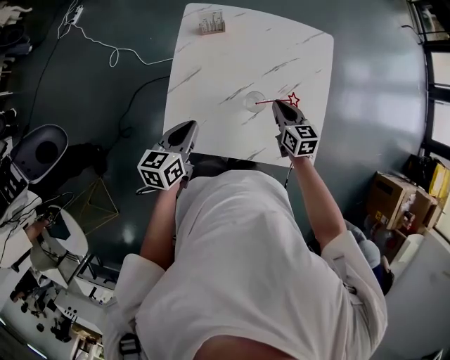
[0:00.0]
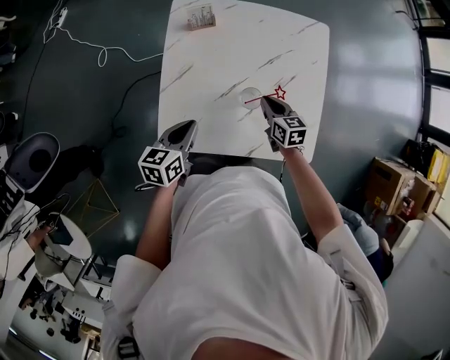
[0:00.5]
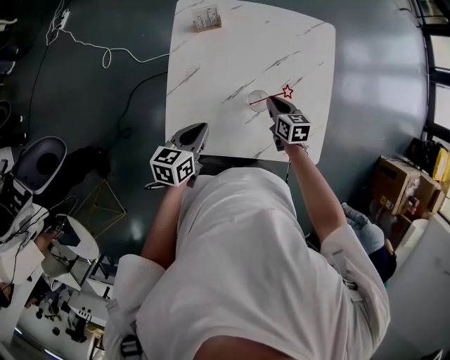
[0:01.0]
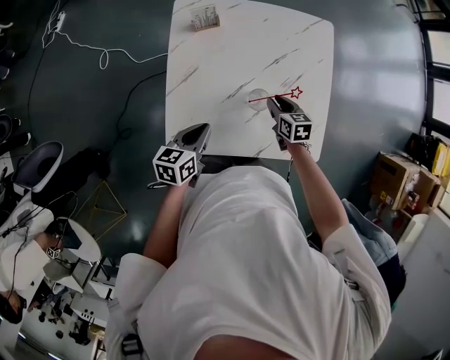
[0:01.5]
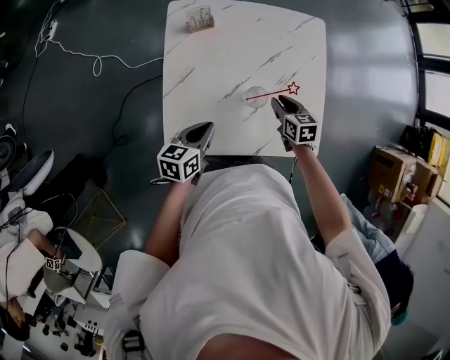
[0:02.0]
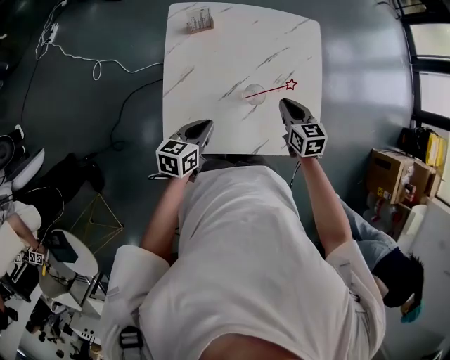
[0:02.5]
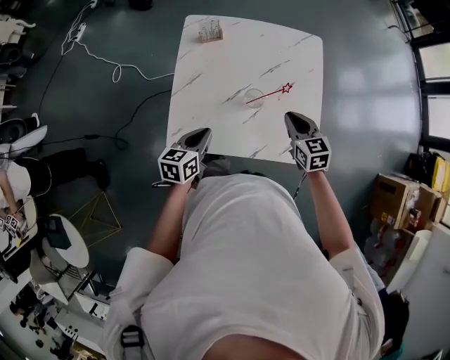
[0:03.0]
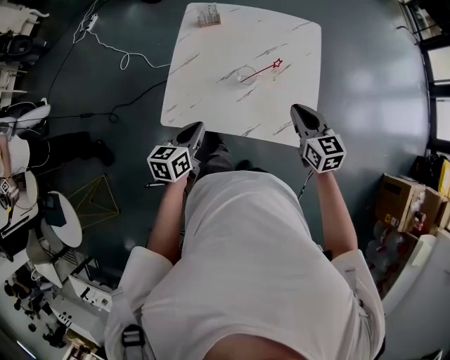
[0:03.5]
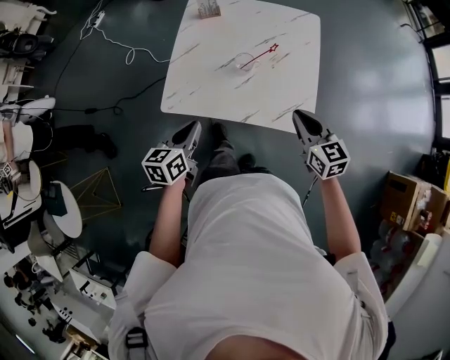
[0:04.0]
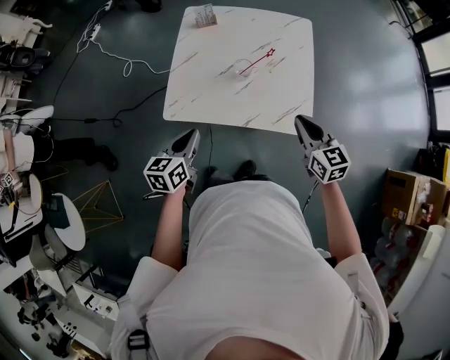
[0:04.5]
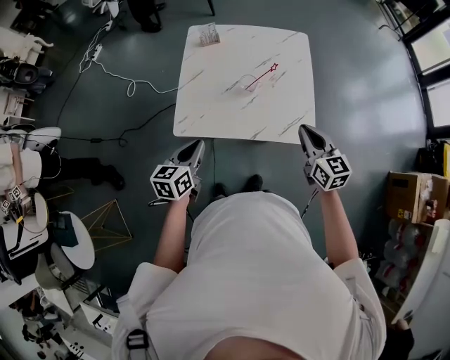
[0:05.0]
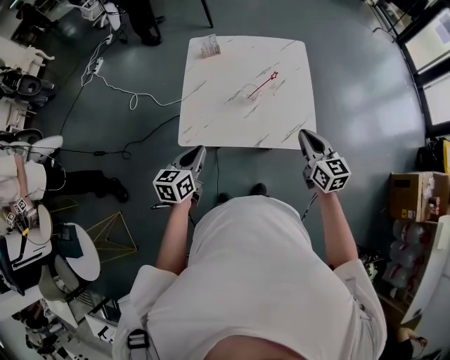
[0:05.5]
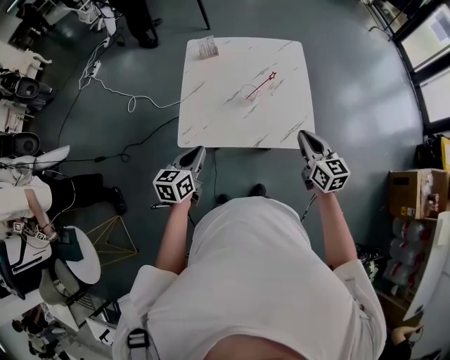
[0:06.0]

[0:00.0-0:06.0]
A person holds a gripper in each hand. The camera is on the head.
0:00.0 to 0:02.0: The left gripper shifts some 5 cm downward.
0:02.0 to 0:04.0: The right gripper travels backward, upward and to the right by some 30 cm, and changes its angle by approximately 30 degrees, while the left gripper moves backward and upward, about 25 cm, and changes its angle by roughly 20 degrees.
0:04.0 to 0:06.0: The right gripper moves approximately 5 cm. The left gripper travels to the left by some 5 cm.

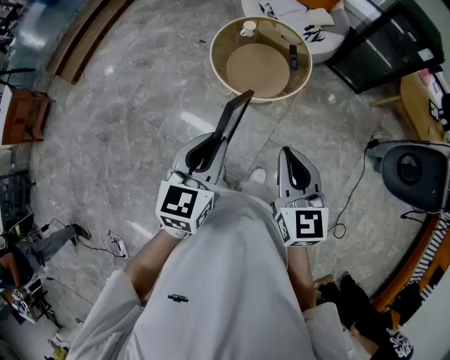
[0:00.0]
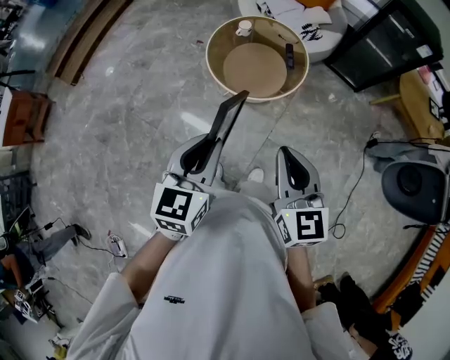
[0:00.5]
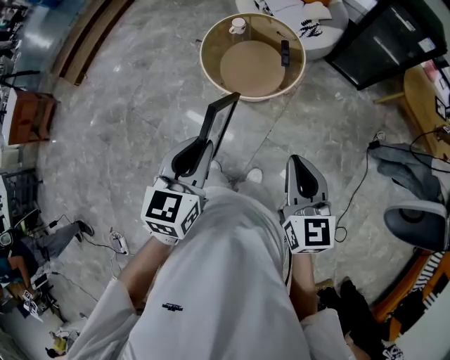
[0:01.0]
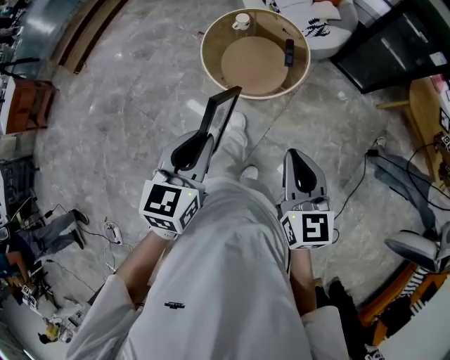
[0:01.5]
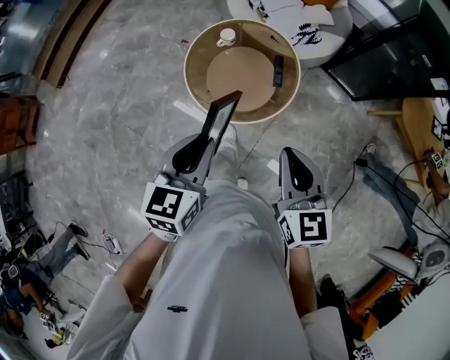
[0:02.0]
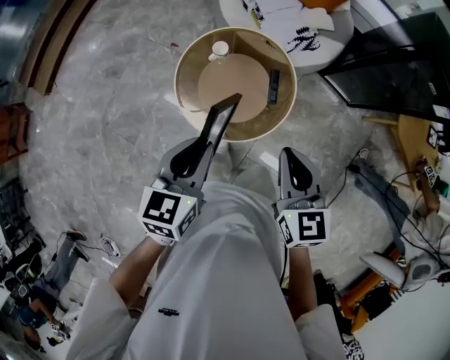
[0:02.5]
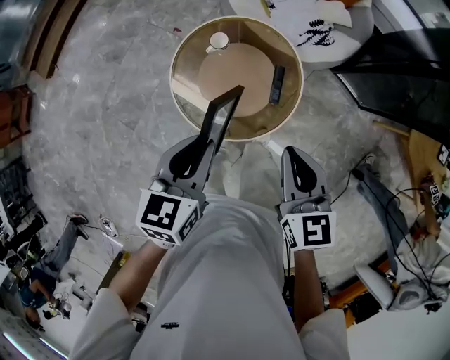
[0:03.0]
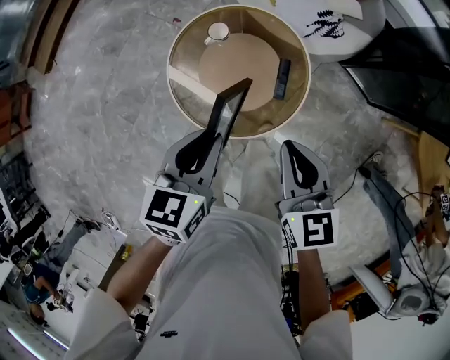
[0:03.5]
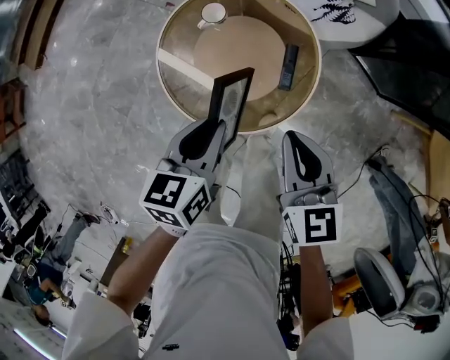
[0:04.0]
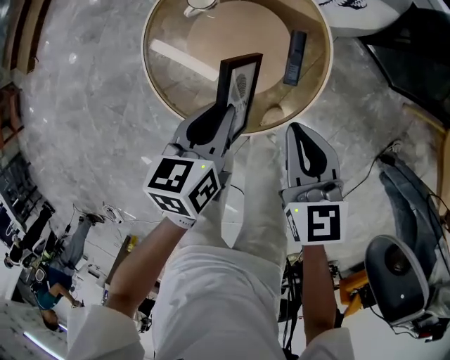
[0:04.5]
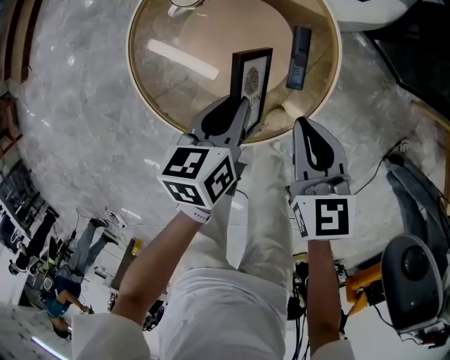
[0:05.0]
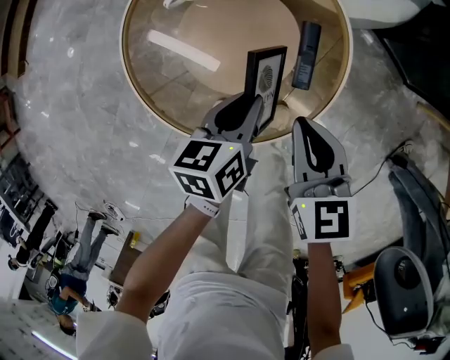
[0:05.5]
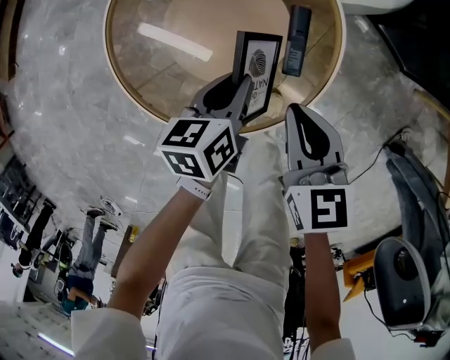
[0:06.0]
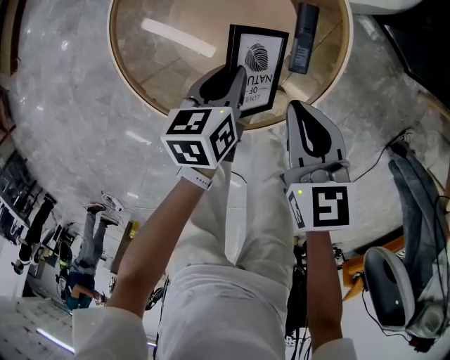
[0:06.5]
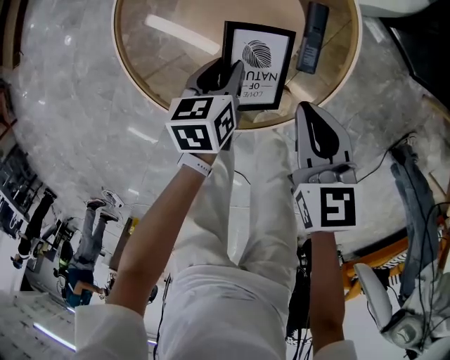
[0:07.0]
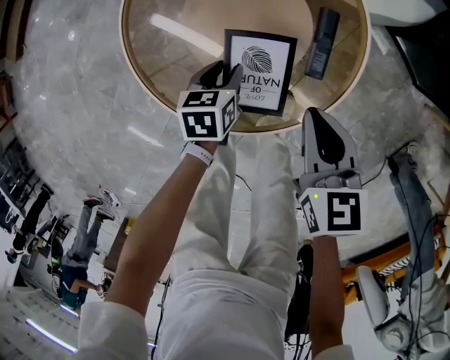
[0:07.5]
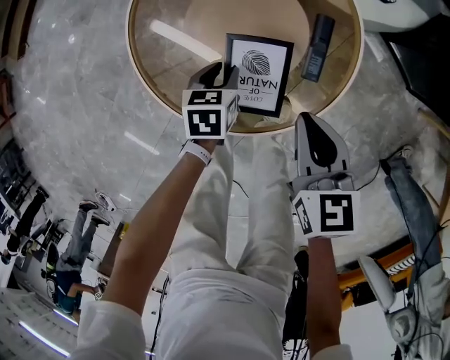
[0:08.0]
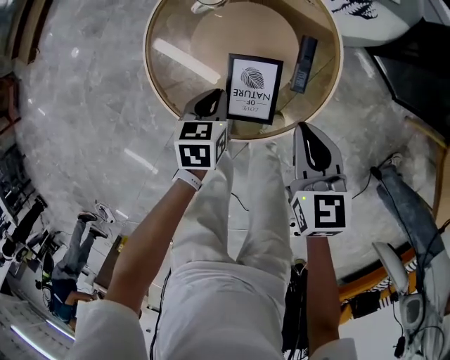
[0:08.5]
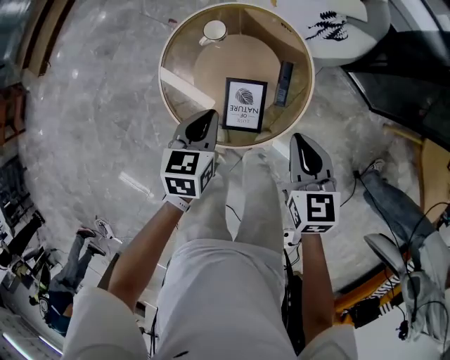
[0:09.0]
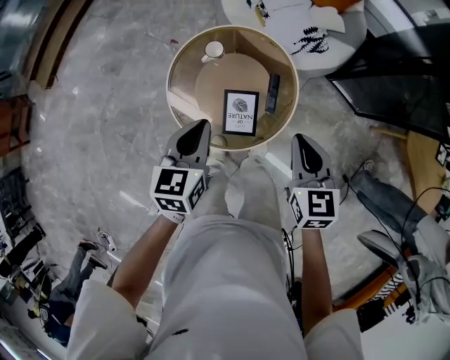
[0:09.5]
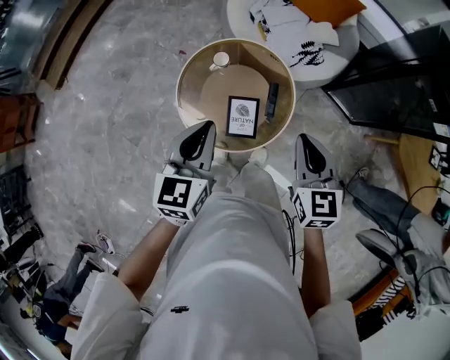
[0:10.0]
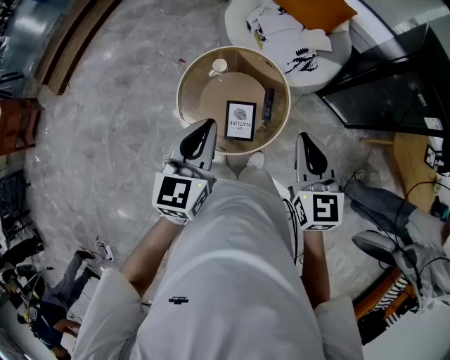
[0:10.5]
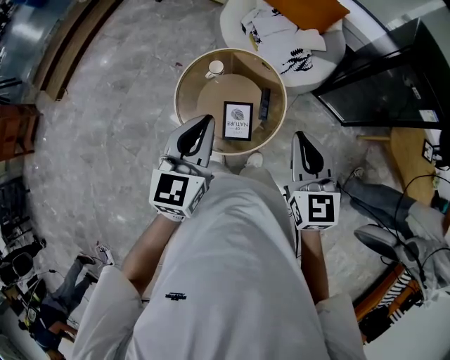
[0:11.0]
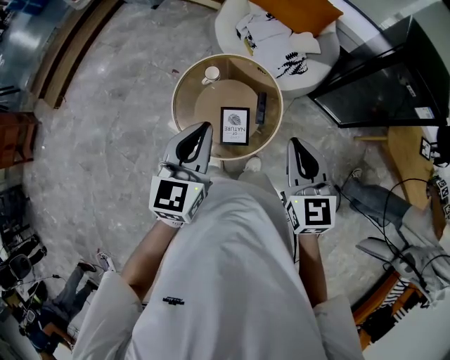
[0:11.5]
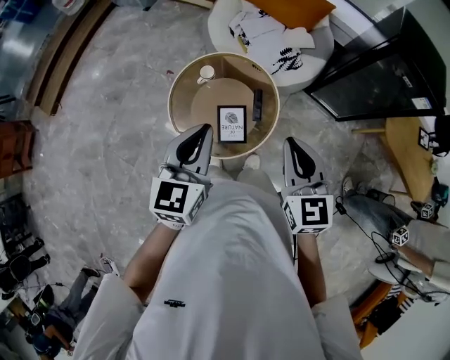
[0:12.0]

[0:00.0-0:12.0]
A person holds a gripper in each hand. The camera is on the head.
0:00.0 to 0:02.0: The left gripper goes some 25 cm forward. The right gripper travels forward and to the right by some 25 cm.
0:02.0 to 0:04.0: The left gripper shifts about 30 cm downward and forward, and changes its angle by roughly 20 degrees. Meanwhile the right gripper shifts some 30 cm forward and downward.
0:04.0 to 0:06.0: The two grippers go some 25 cm downward.
0:06.0 to 0:08.0: The left gripper is displaced downward and to the left by about 10 cm, and turns by approximately 20 degrees.
0:08.0 to 0:10.0: The two grippers go about 50 cm upward. The left gripper tilts its fingers approximately 40 degrees upward, and closes its fingers.
0:10.0 to 0:12.0: The left gripper shifts approximately 5 cm upward. The right gripper heads upward and backward, covering roughly 10 cm.

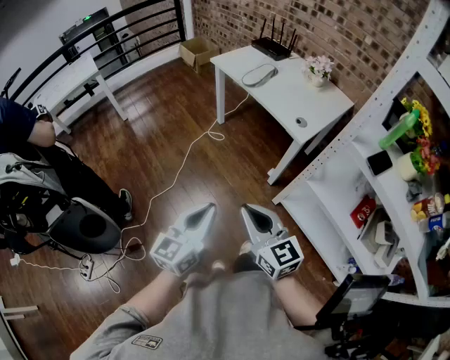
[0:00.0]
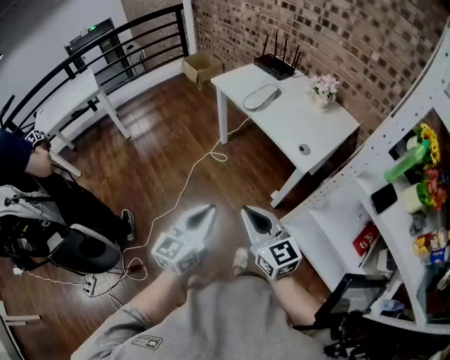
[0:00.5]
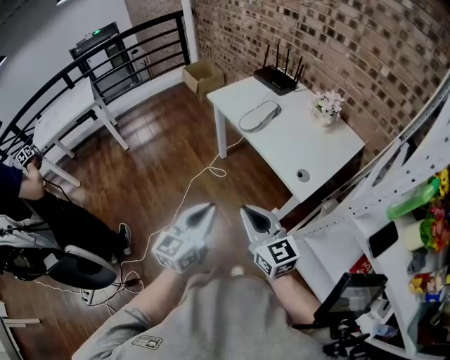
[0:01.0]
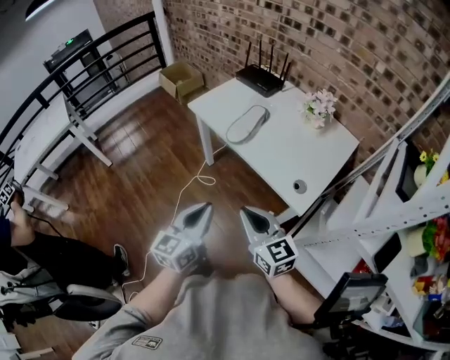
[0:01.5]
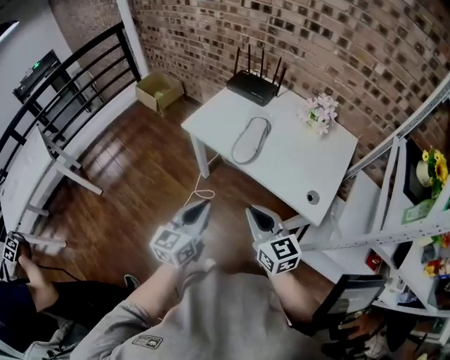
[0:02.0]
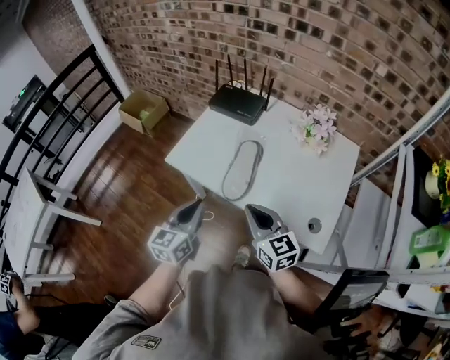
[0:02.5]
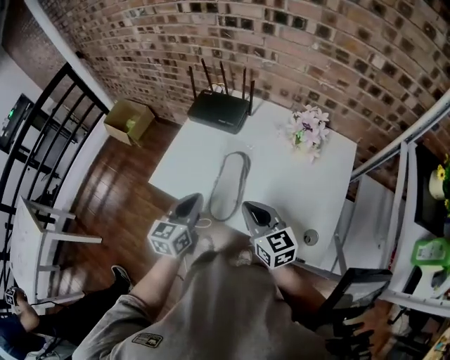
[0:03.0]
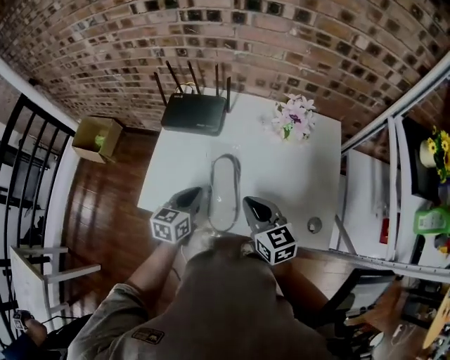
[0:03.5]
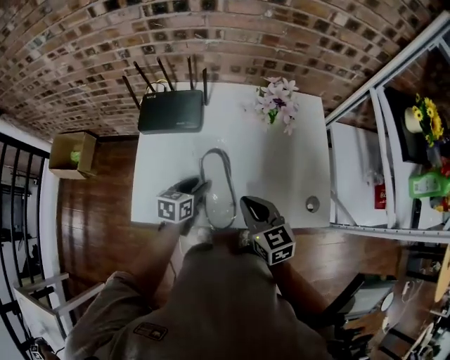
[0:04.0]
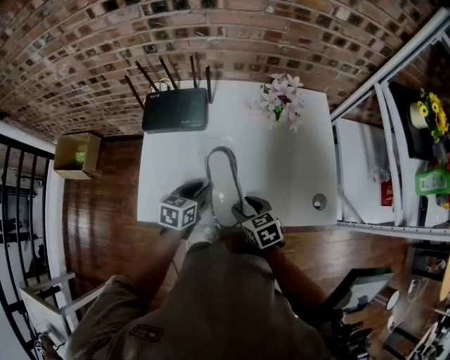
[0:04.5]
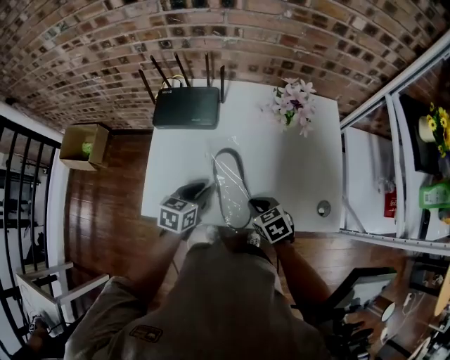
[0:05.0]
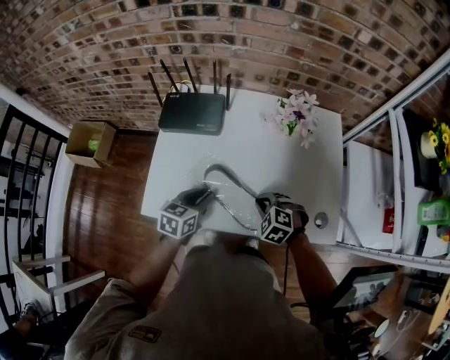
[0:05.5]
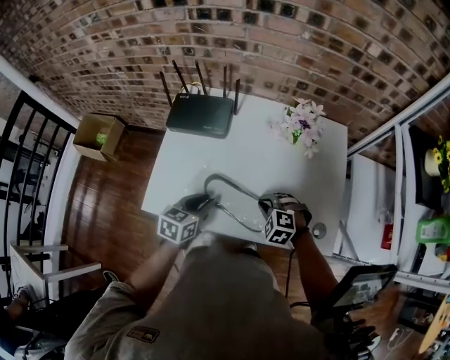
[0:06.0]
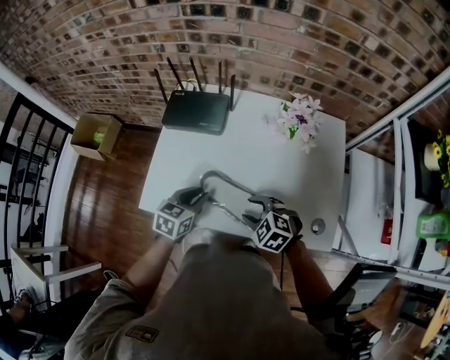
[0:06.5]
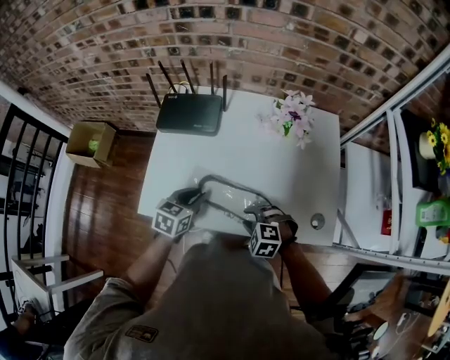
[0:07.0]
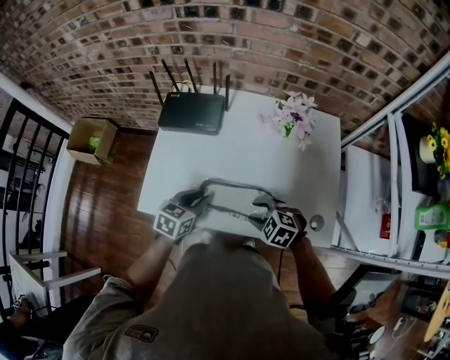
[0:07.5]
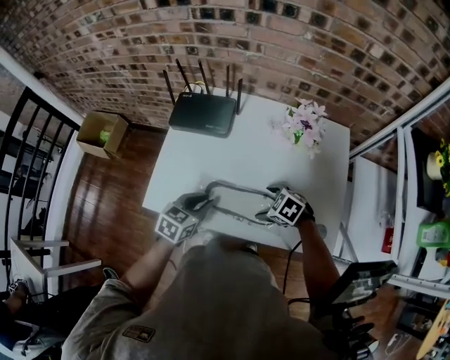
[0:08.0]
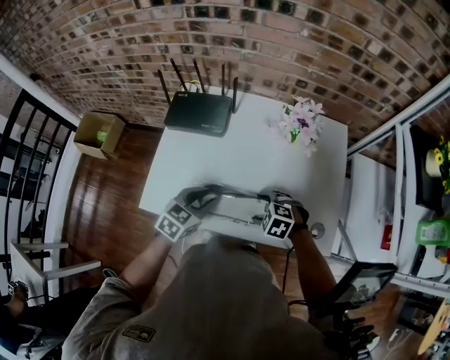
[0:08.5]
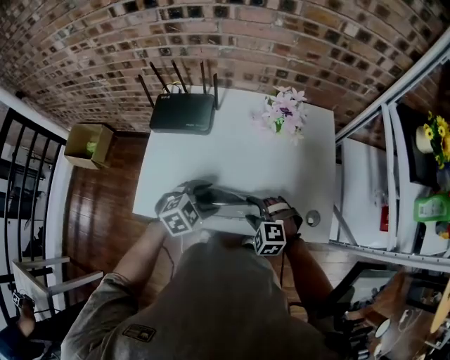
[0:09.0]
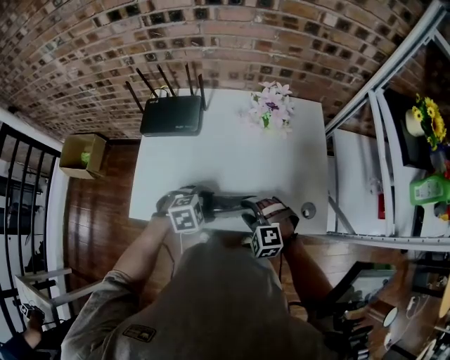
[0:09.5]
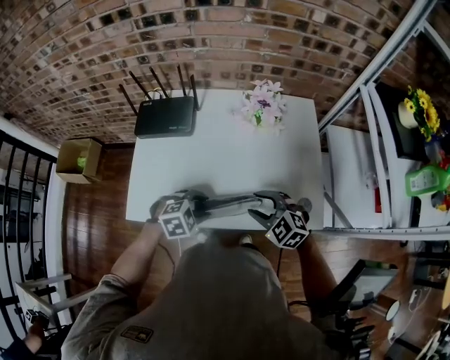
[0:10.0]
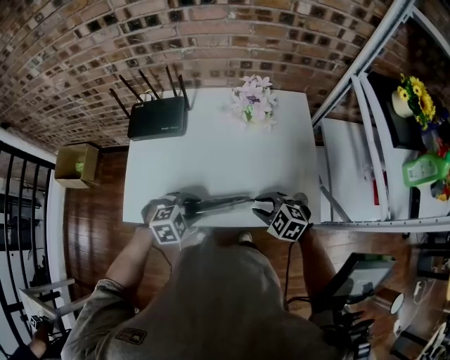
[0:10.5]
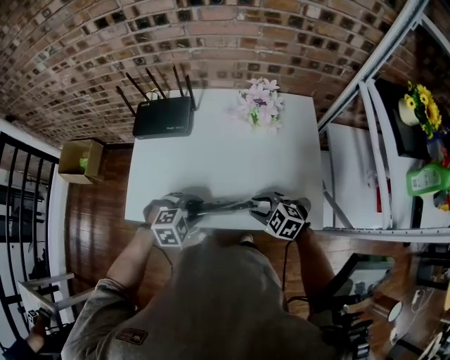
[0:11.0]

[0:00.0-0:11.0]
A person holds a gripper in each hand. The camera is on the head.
0:00.0 to 0:02.0: Both grippers are carried forward, approximately 50 cm.
0:02.0 to 0:03.5: Both grippers travel together forward, about 35 cm. The right gripper swivels some 30 degrees, while the left gripper changes its angle by roughly 30 degrees.
0:03.5 to 0:05.5: The right gripper heads downward, covering approximately 15 cm, tilts its fingers about 40 degrees downward, and opens and closes again.
0:05.5 to 0:07.5: The right gripper opens up.
0:07.5 to 0:09.0: The right gripper turns by about 20 degrees. Meanwhile the left gripper changes place by roughly 5 cm, twists roughly 40 degrees clockwise, seen from behind, and opens its fingers.
0:09.0 to 0:11.0: The left gripper shifts by about 5 cm, and changes its angle by about 20 degrees. The right gripper moves to the right, approximately 5 cm, and changes its angle by roughly 30 degrees.
